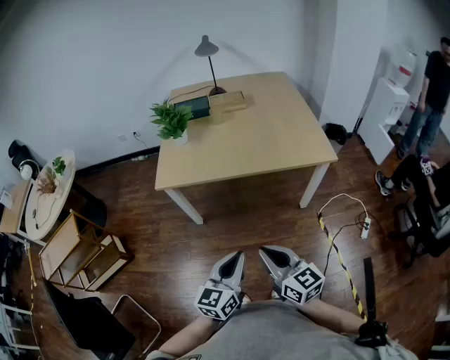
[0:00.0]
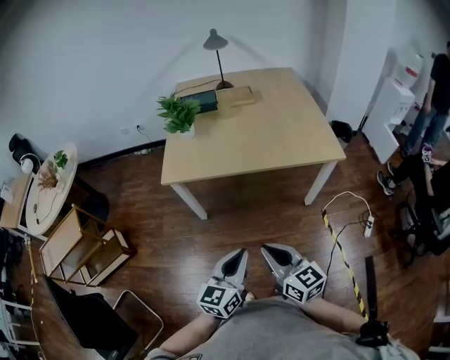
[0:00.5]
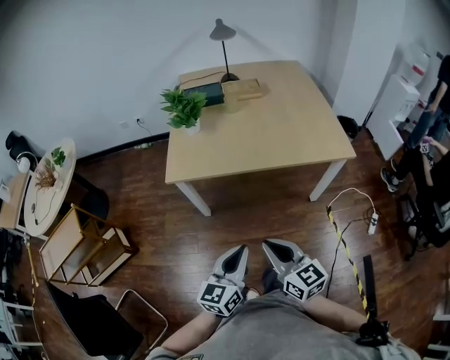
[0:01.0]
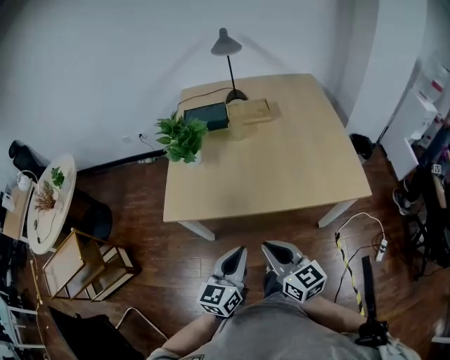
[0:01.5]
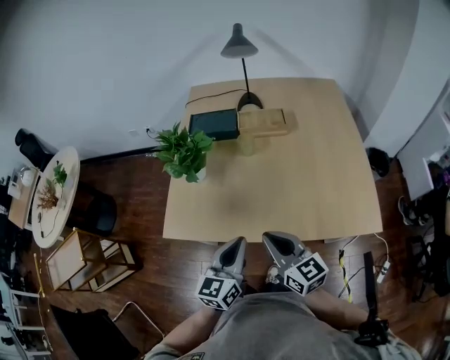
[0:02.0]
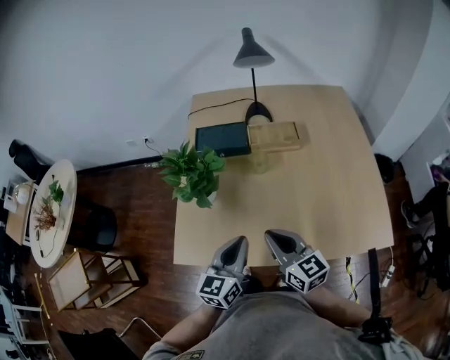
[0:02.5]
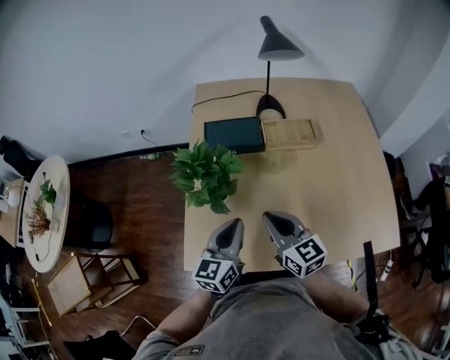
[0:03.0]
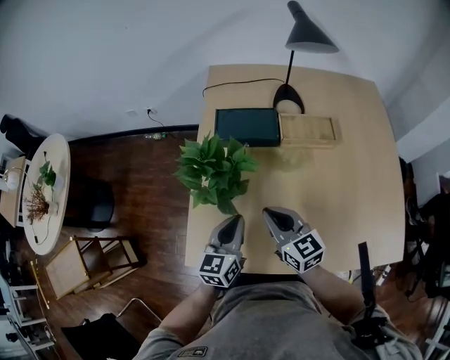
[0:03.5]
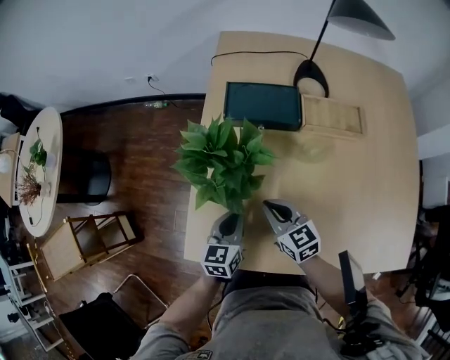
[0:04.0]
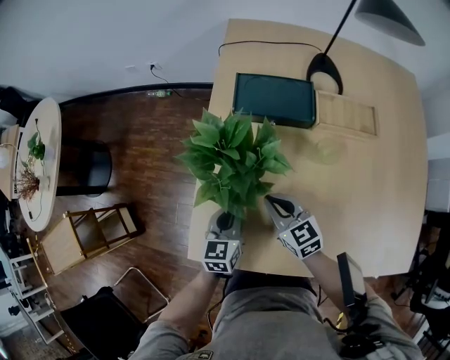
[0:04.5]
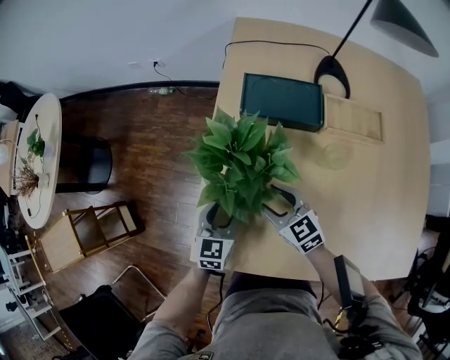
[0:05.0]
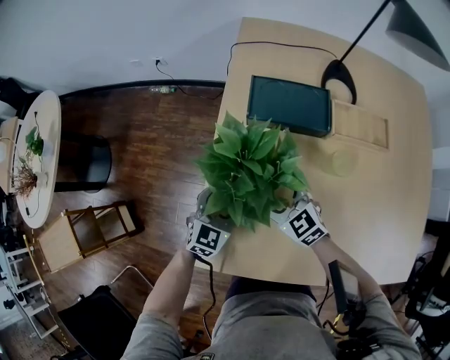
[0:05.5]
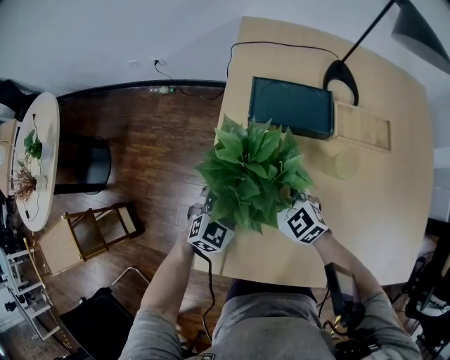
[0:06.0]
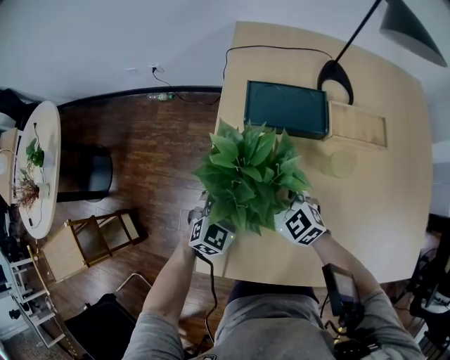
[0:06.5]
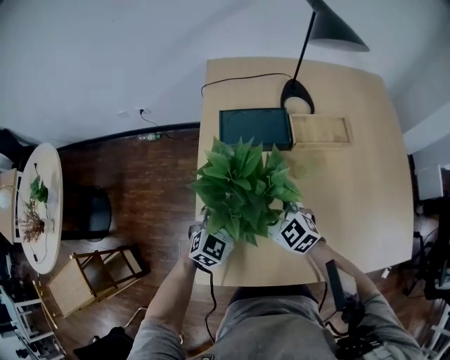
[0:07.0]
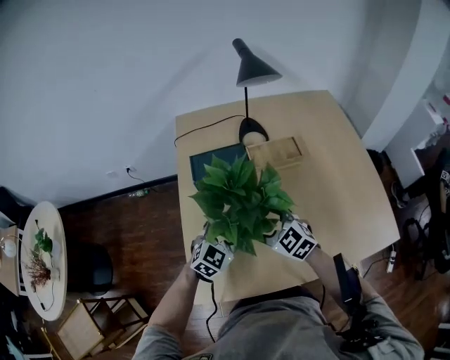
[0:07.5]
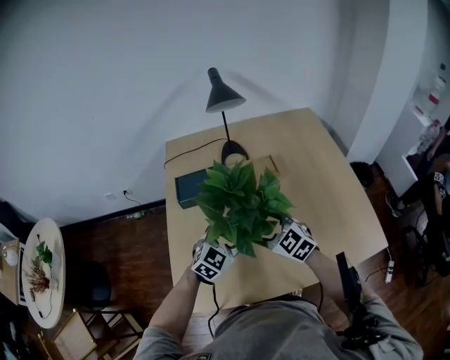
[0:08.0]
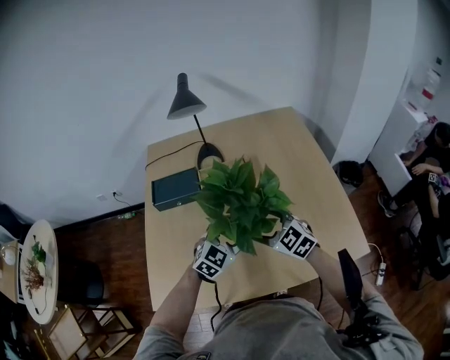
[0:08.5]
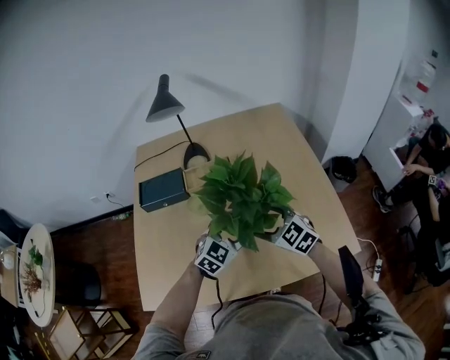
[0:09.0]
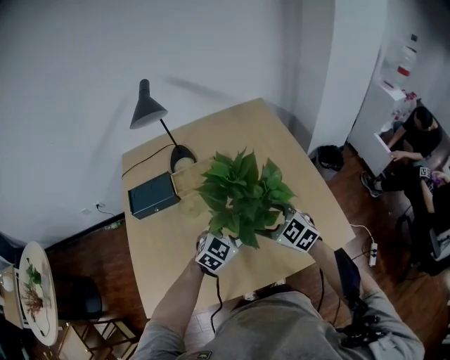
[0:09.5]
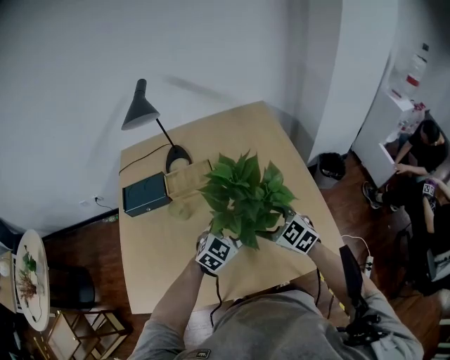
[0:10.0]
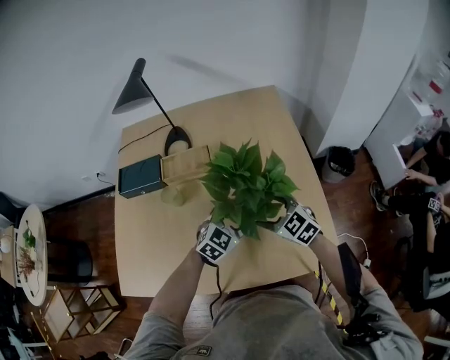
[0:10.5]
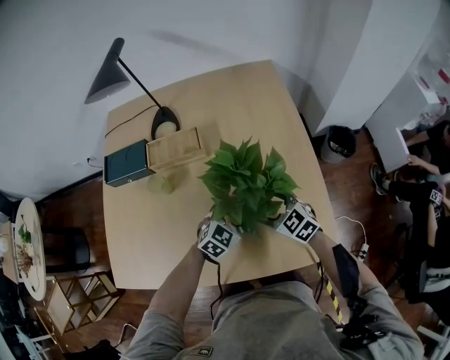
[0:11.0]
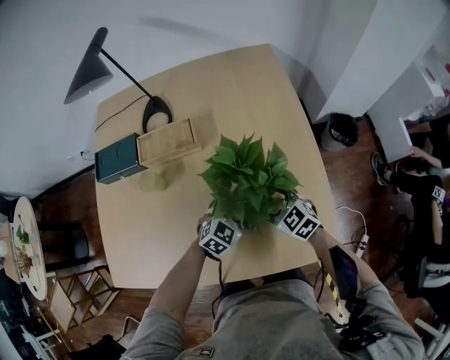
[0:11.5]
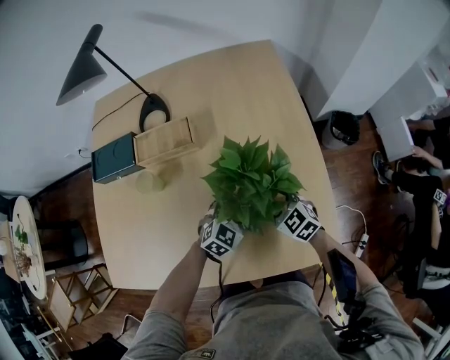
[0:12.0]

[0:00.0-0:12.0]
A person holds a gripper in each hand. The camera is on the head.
0:00.0 to 0:02.0: Both grippers travel together forward, roughly 40 cm.
0:02.0 to 0:04.0: Both grippers move forward, downward and to the left, some 35 cm. The right gripper turns by roughly 20 degrees.
0:04.0 to 0:06.0: The left gripper shifts some 10 cm forward, rotates around the line of its fingers by about 40 degrees, clockwise from behind, and opens its fingers; the right gripper travels forward and to the left by about 10 cm, rotates approximately 30 degrees, and opens.
0:06.0 to 0:08.0: Both grippers travel together to the right and upward, some 25 cm. The left gripper turns by some 20 degrees. The right gripper turns by roughly 20 degrees.
0:08.0 to 0:10.0: The grippers both shift to the right by roughly 25 cm.
0:10.0 to 0:12.0: The two grippers go some 15 cm downward and to the right.

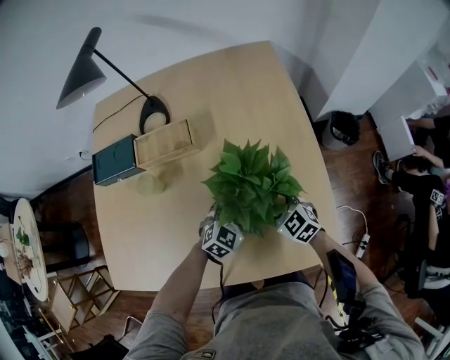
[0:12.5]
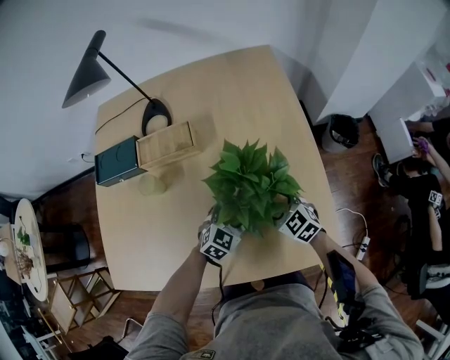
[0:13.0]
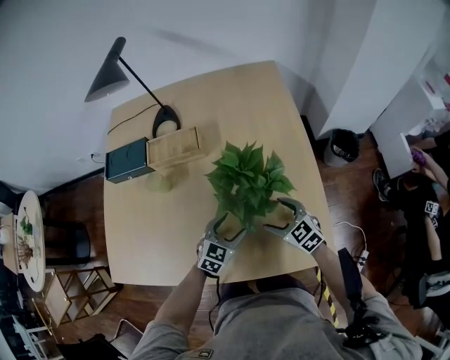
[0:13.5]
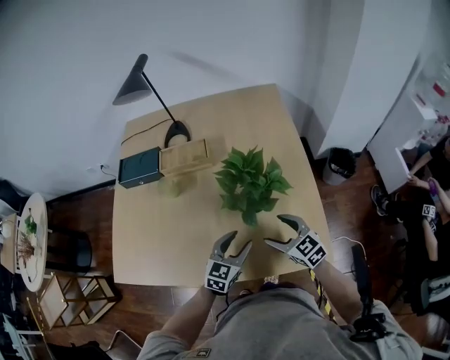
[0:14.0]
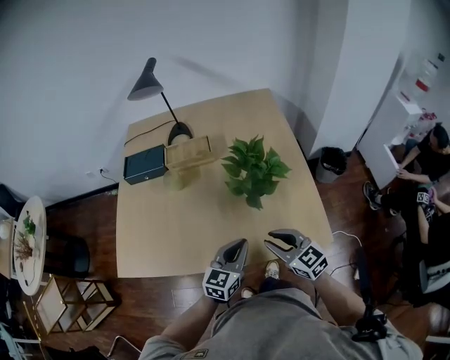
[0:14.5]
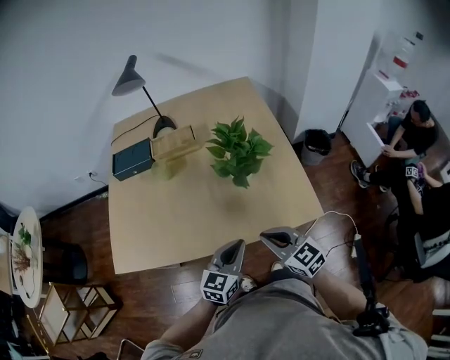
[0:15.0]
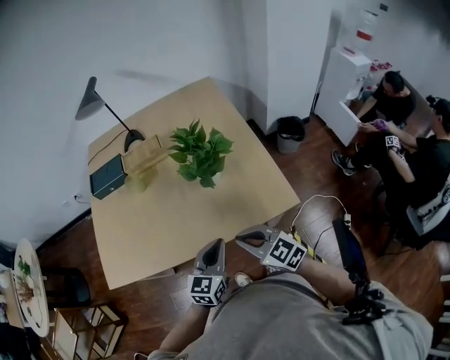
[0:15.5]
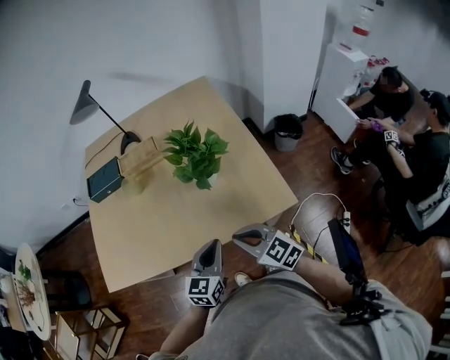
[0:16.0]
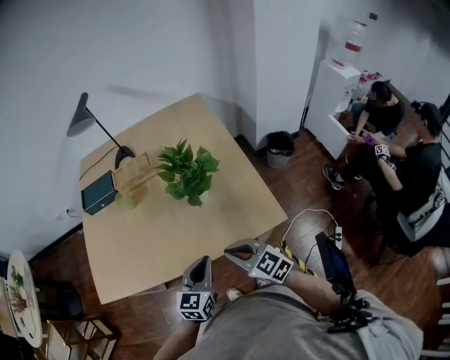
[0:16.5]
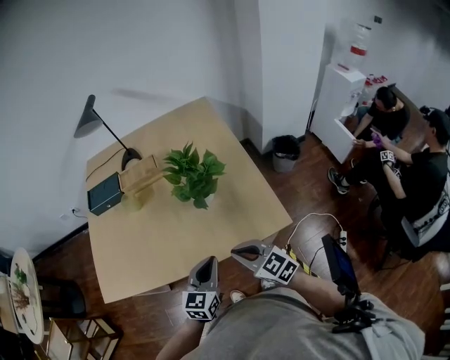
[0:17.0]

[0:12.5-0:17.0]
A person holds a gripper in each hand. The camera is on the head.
0:12.5 to 0:14.5: Both grippers travel together backward and upward, about 20 cm. The right gripper swivels about 20 degrees, and closes its fingers. Meanwhile the left gripper turns by approximately 40 degrees, and closes.
0:14.5 to 0:17.0: Both grippers travel together backward, about 10 cm.

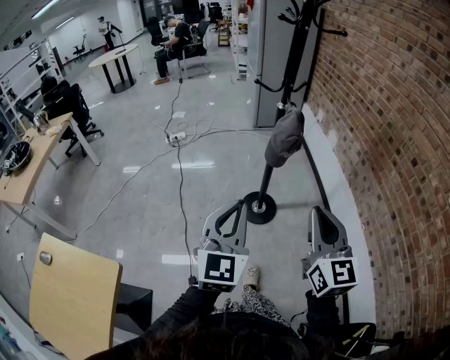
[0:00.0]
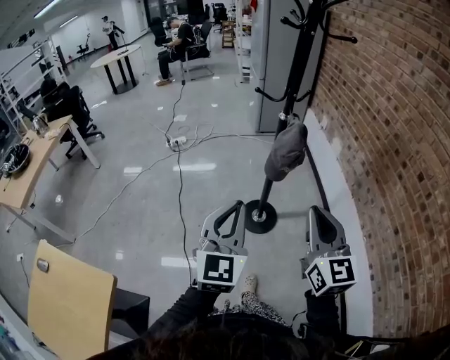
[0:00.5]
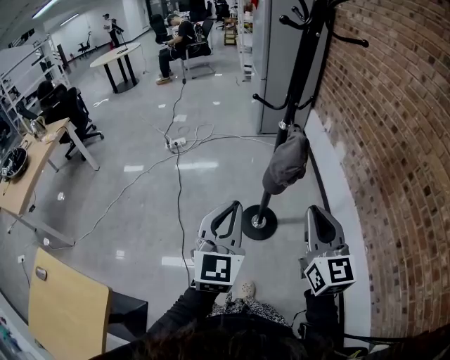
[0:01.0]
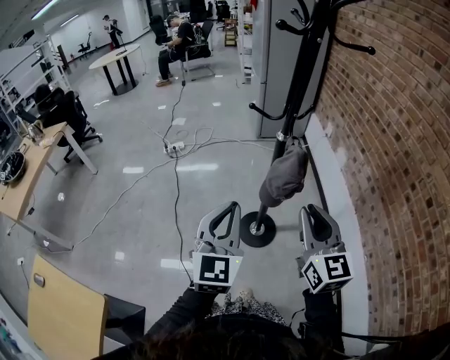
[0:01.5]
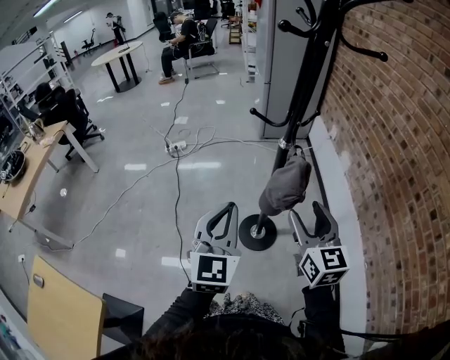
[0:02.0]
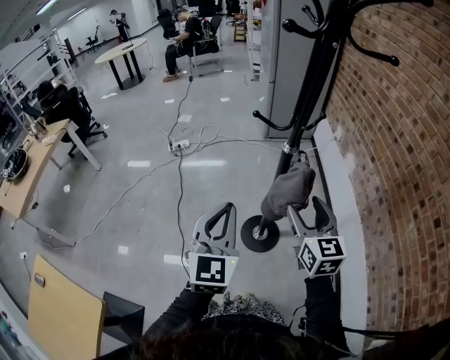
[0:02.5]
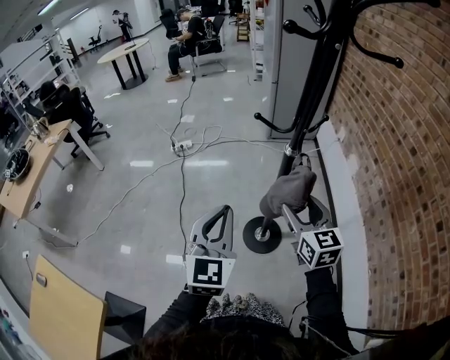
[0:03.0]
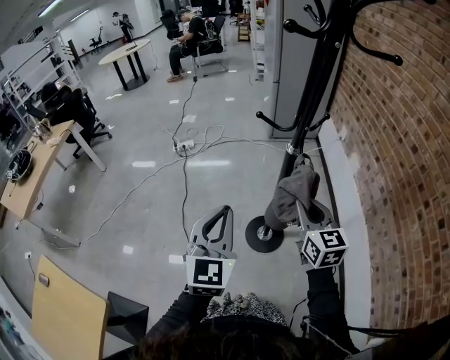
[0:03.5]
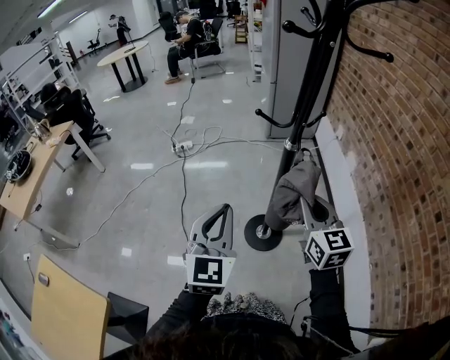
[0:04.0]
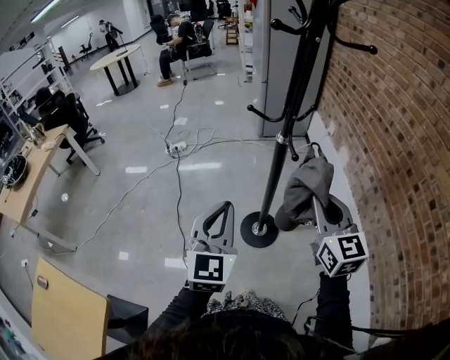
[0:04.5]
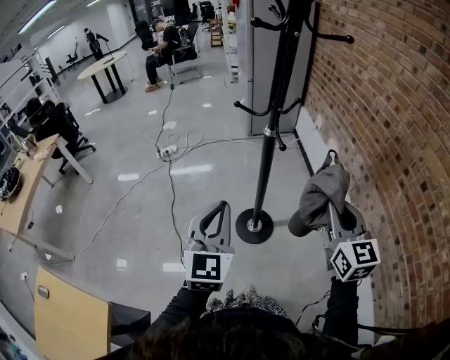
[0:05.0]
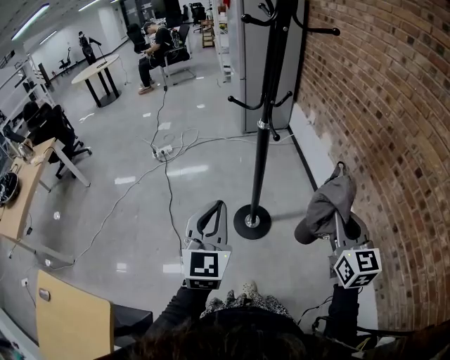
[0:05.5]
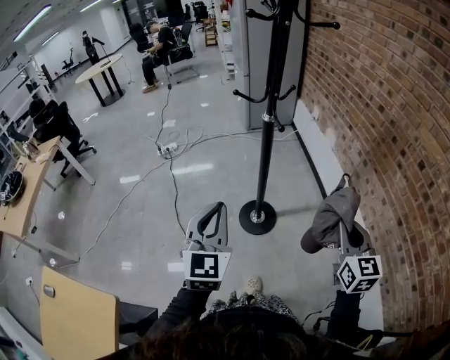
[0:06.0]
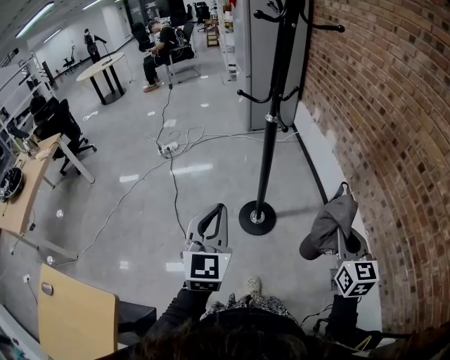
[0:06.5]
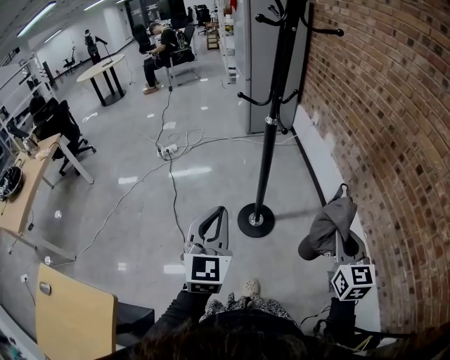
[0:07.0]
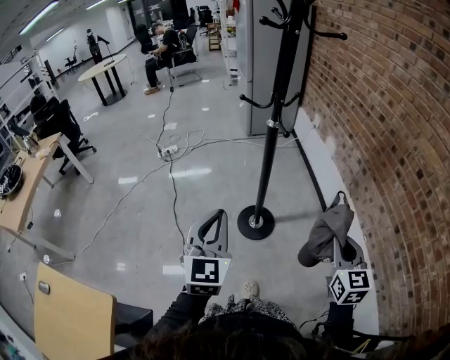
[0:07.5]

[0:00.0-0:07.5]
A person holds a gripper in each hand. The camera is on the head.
0:00.0 to 0:02.0: Both grippers travel together forward, about 25 cm. The right gripper opens up.
0:02.0 to 0:04.0: The right gripper closes its fingers.
0:04.0 to 0:05.5: The right gripper is displaced backward and to the right by approximately 20 cm. Meanwhile the left gripper travels backward by approximately 5 cm.
0:05.5 to 0:07.5: The left gripper changes place by some 5 cm; the right gripper moves backward and downward, approximately 10 cm.

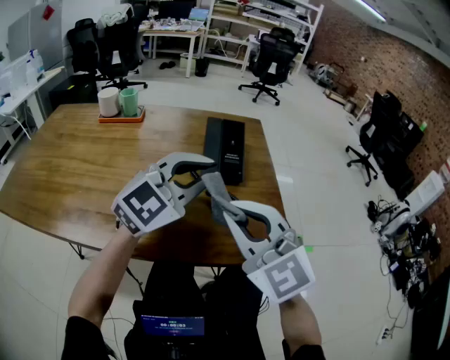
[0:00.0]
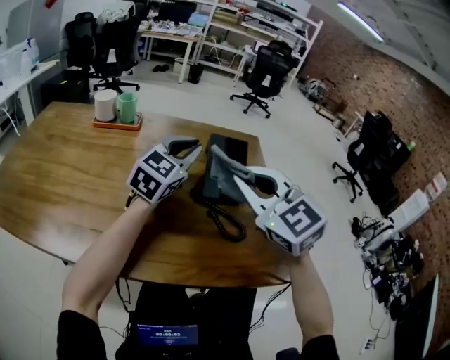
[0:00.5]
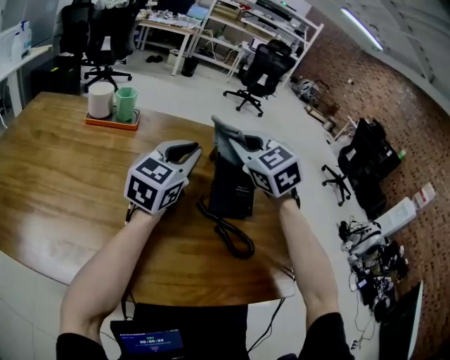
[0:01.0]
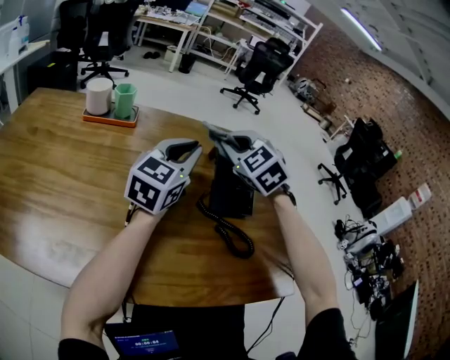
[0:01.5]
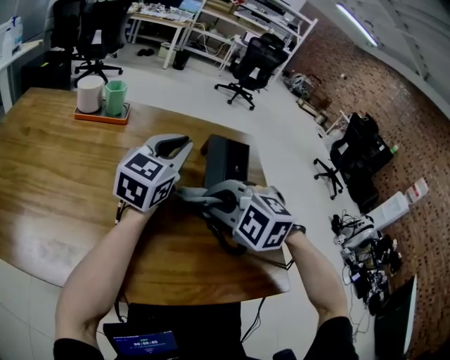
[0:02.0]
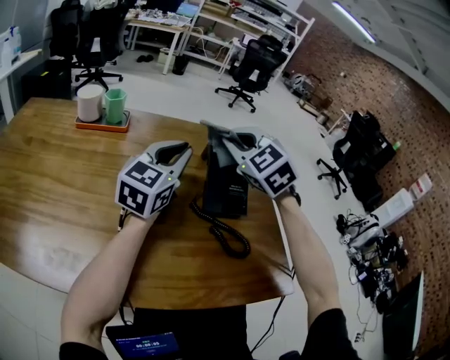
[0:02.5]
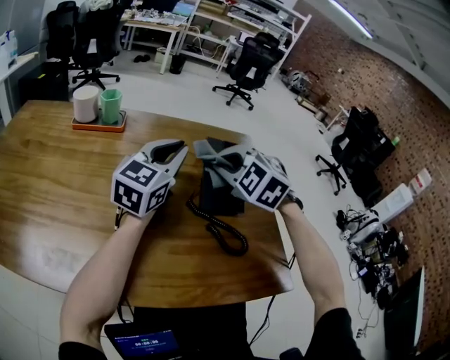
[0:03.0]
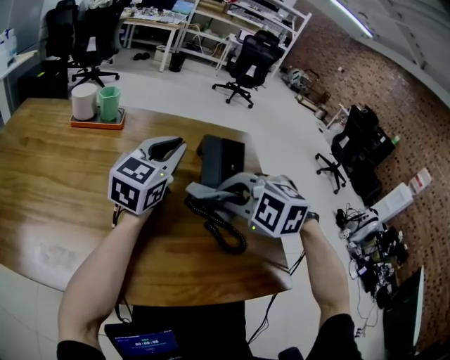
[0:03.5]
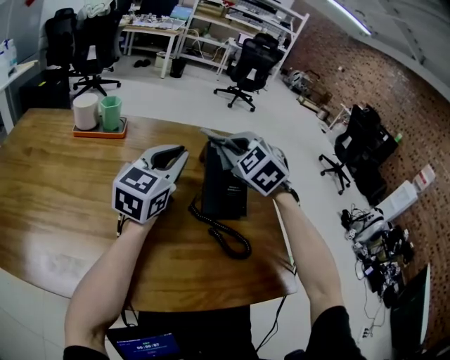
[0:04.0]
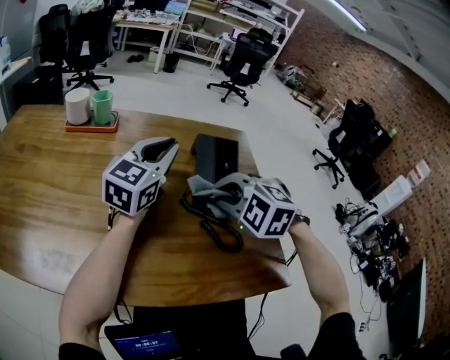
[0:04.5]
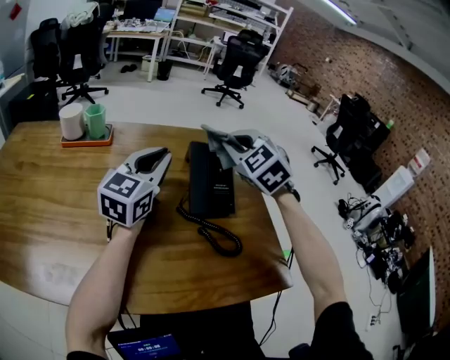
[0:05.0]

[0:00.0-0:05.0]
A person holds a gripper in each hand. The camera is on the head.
0:00.0 to 0:02.5: The left gripper travels forward and to the left by some 20 cm, and changes its angle by approximately 30 degrees, while the right gripper swings forward and backward, approximately 30 cm each way, with 2 reversals, and turns by some 30 degrees.
0:02.5 to 0:05.0: The right gripper moves forward and backward over approximately 15 cm, changing direction 3 times.
